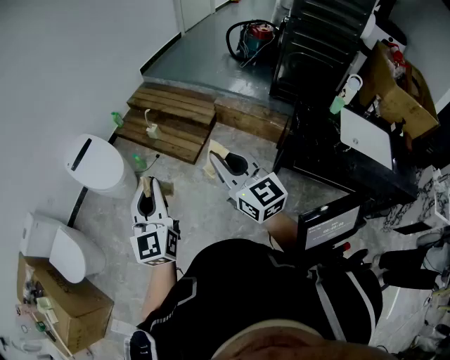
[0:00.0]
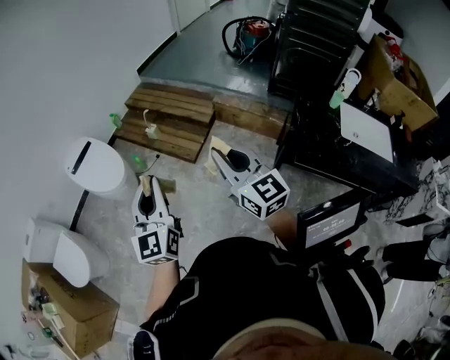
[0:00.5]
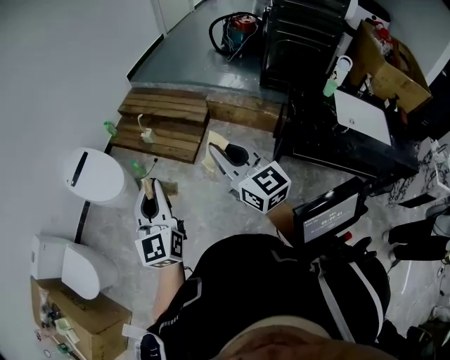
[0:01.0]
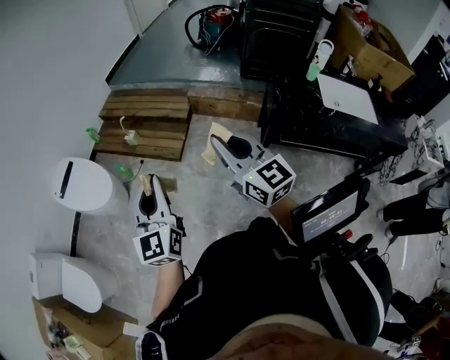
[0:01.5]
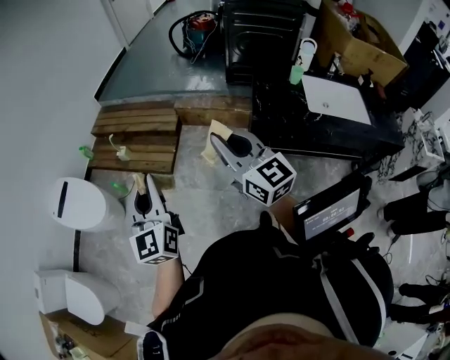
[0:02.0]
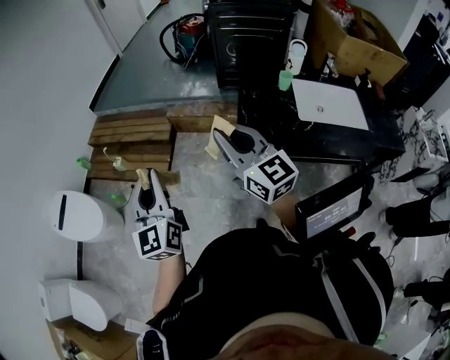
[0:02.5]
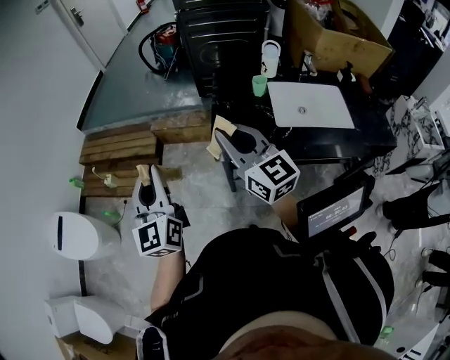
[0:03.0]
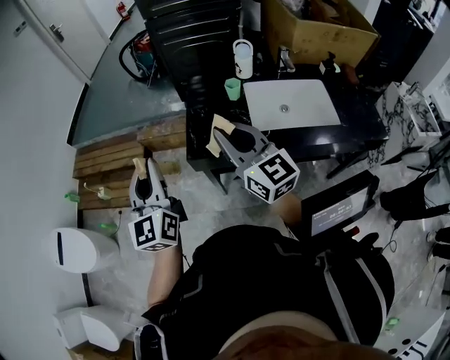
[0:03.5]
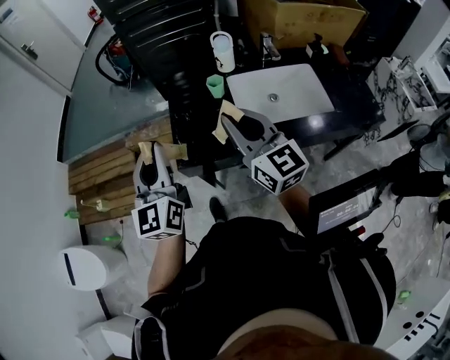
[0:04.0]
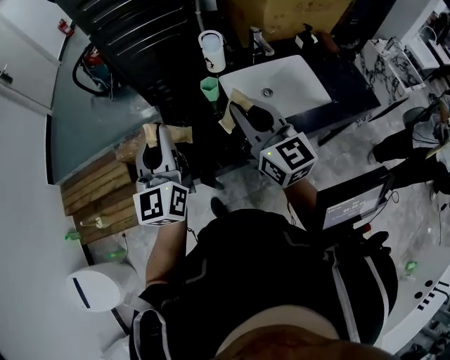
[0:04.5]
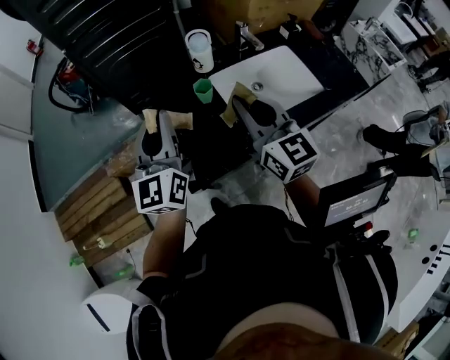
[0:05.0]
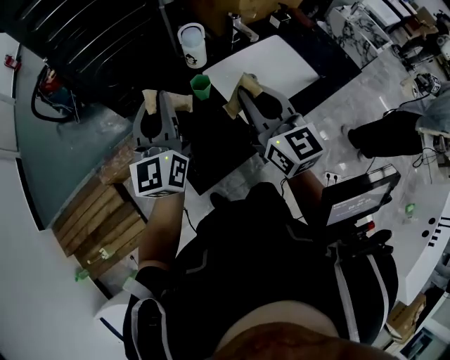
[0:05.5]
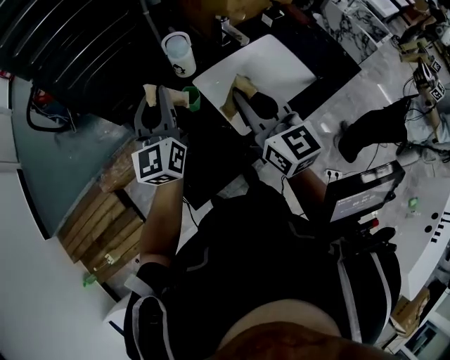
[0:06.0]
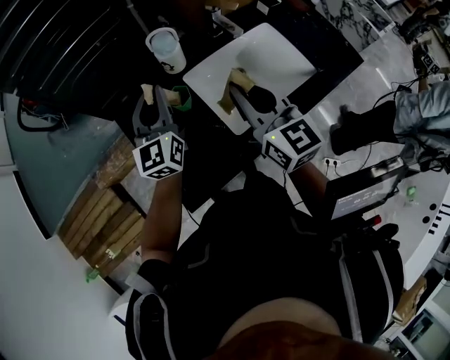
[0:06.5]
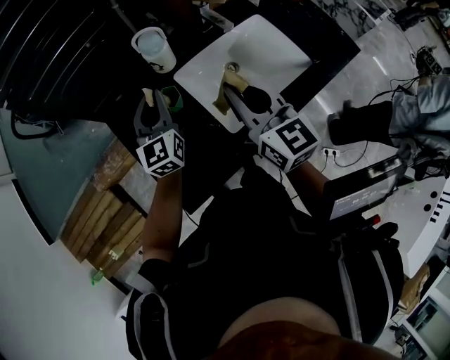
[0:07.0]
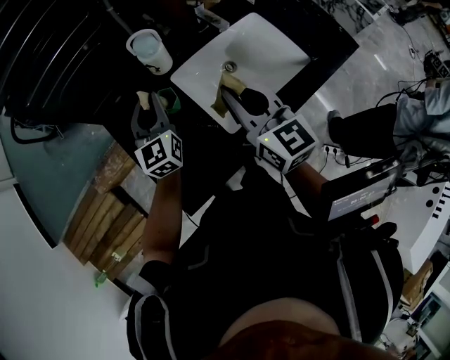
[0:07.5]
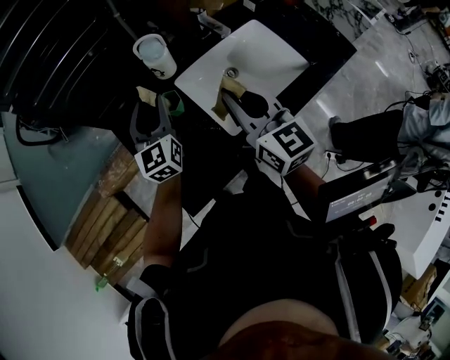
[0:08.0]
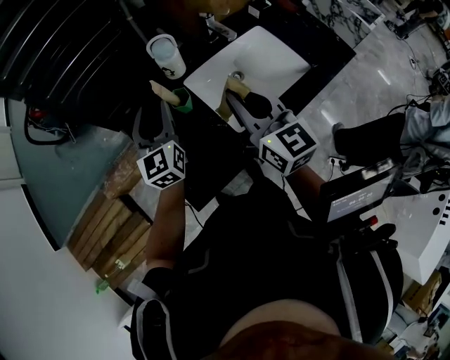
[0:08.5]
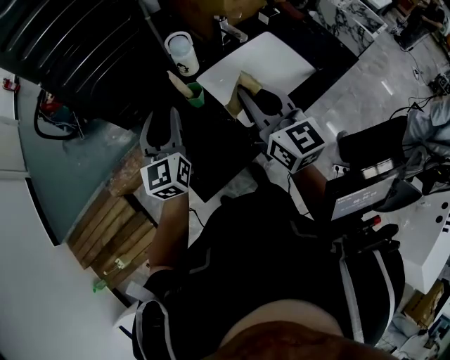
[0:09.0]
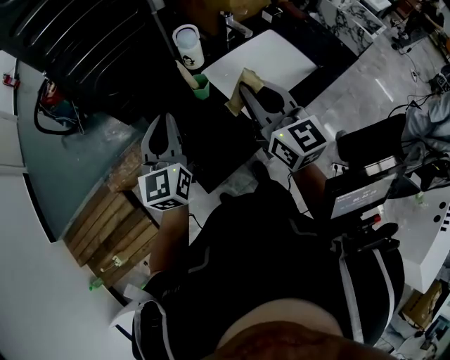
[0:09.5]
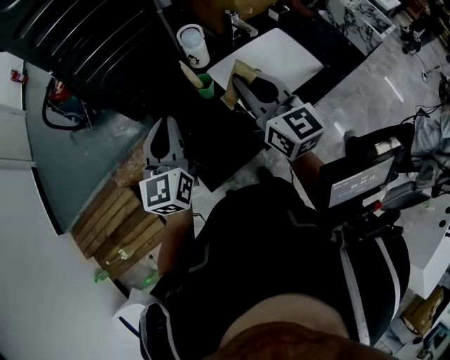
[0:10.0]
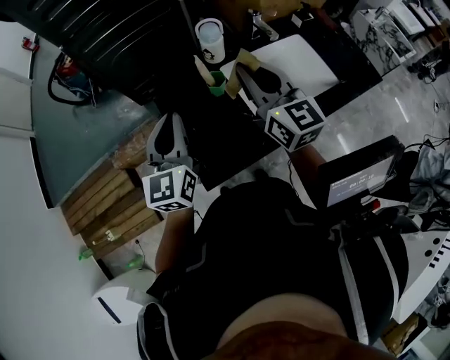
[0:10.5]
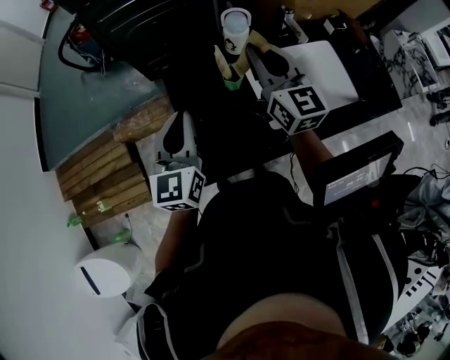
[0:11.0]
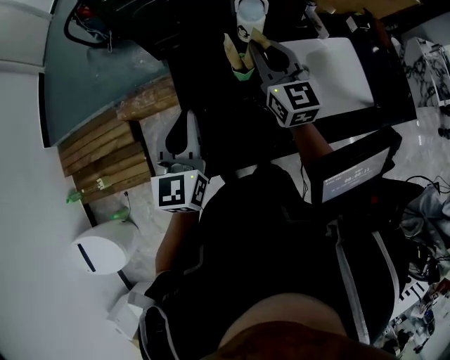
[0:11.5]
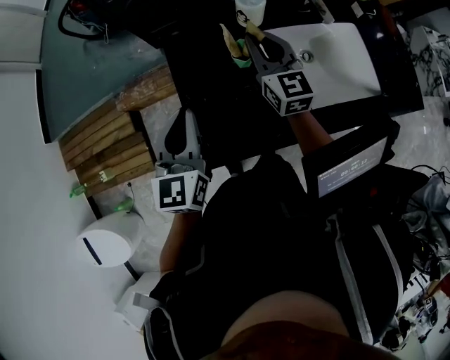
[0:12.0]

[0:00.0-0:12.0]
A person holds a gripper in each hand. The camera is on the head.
0:00.0 to 0:02.0: The two grippers go some 10 cm to the right.
0:02.0 to 0:04.0: The pair of grippers is taken to the right, roughly 50 cm. The left gripper changes its angle by some 20 degrees; the right gripper swivels about 20 degrees.
0:04.0 to 0:06.0: The left gripper changes place by about 30 cm, and swivels roughly 30 degrees; the right gripper moves approximately 15 cm, and turns by some 30 degrees.
0:06.0 to 0:08.0: The left gripper shifts roughly 10 cm downward, and opens its fingers.
0:08.0 to 0:10.0: The left gripper travels backward, upward and to the left by some 20 cm, and closes up; the right gripper moves to the left, upward and backward, roughly 10 cm.
0:10.0 to 0:12.0: The right gripper is displaced forward and downward by approximately 20 cm. The left gripper is displaced downward by roughly 5 cm, and changes its angle by some 20 degrees.

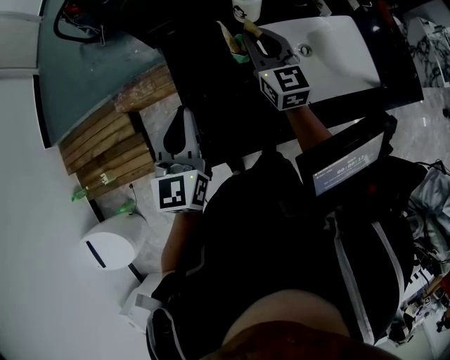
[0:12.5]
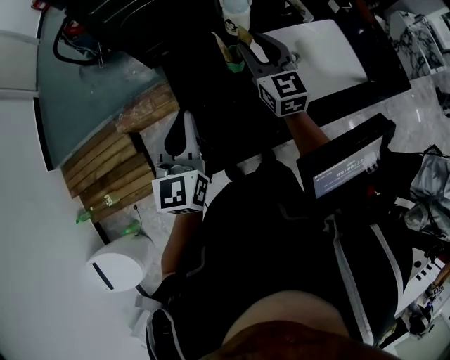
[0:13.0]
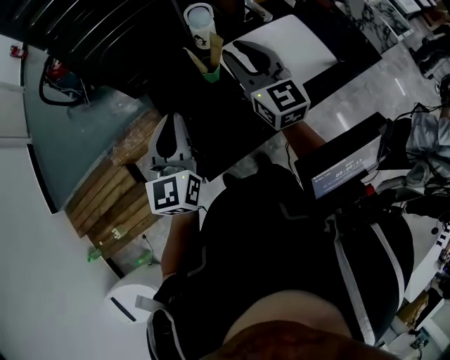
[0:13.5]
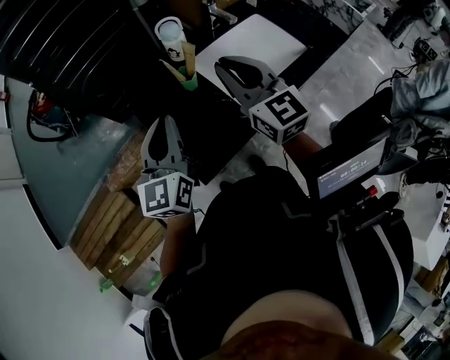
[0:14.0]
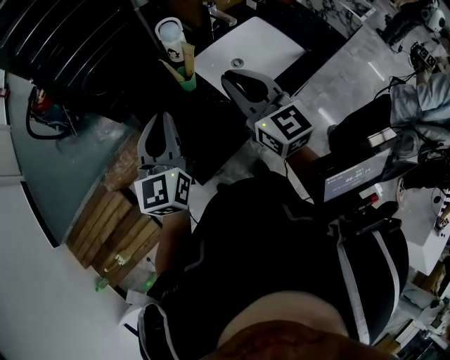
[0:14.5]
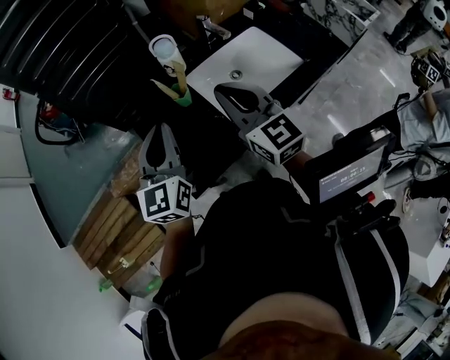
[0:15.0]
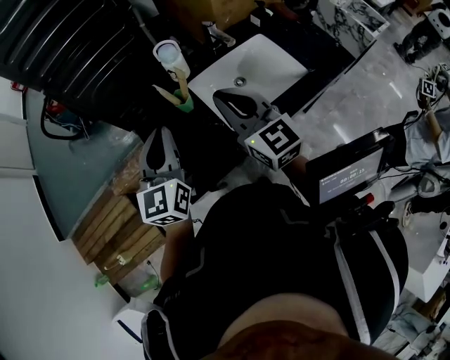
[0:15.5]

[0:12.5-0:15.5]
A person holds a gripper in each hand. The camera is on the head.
0:12.5 to 0:14.0: The right gripper moves backward and upward, approximately 20 cm. The left gripper moves upward, about 5 cm, and swivels approximately 30 degrees.
0:14.0 to 0:15.5: The left gripper goes roughly 5 cm to the right.

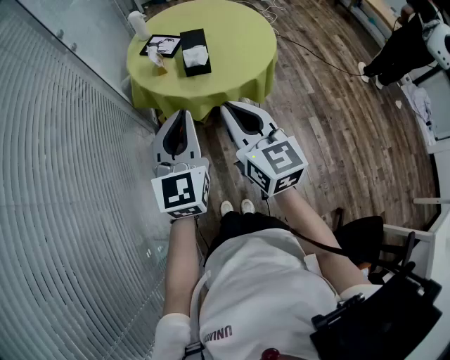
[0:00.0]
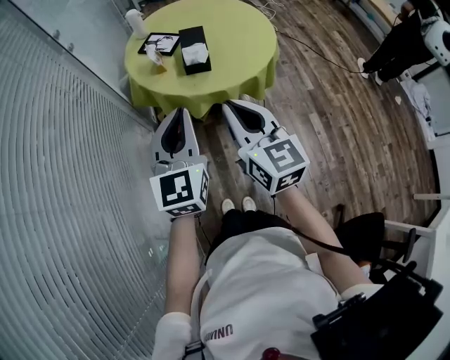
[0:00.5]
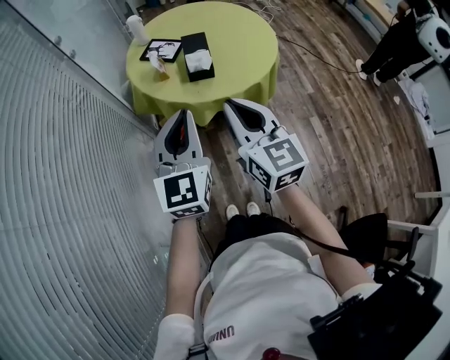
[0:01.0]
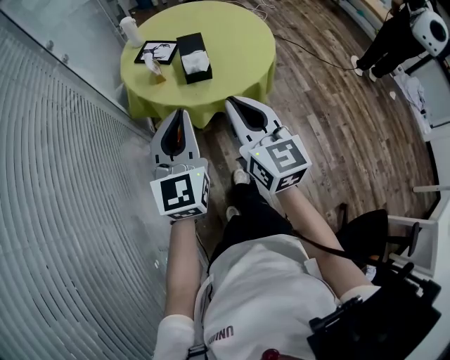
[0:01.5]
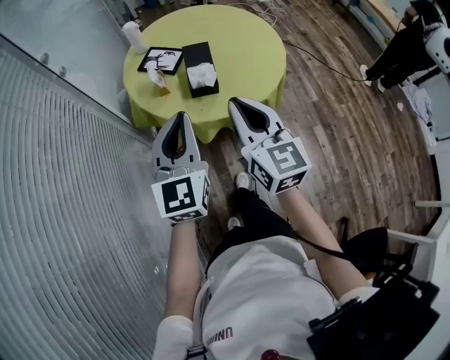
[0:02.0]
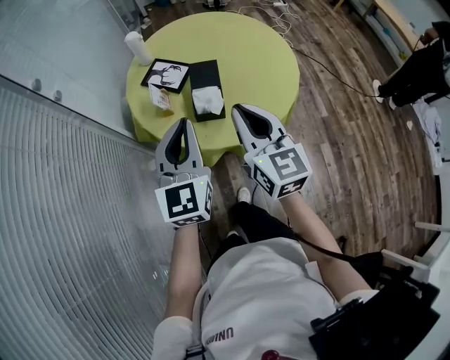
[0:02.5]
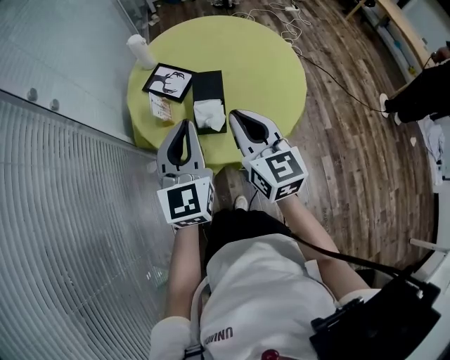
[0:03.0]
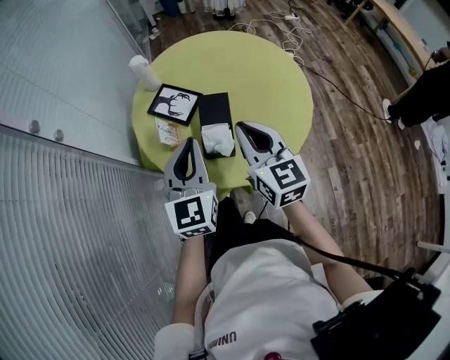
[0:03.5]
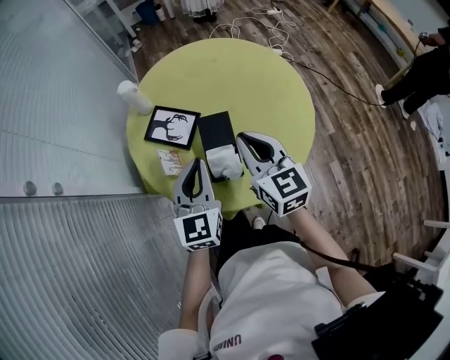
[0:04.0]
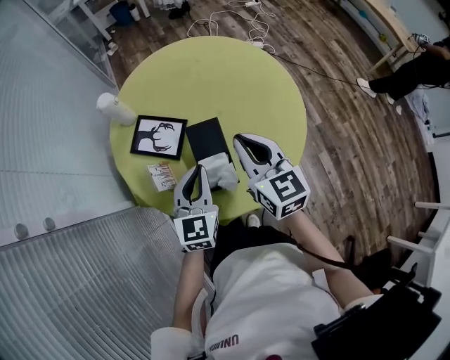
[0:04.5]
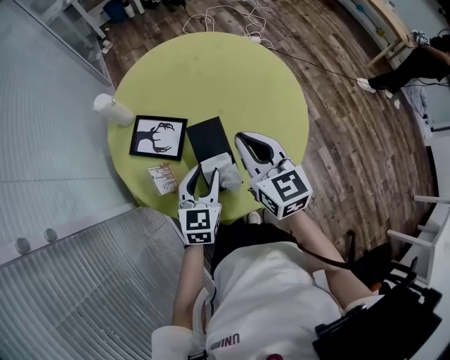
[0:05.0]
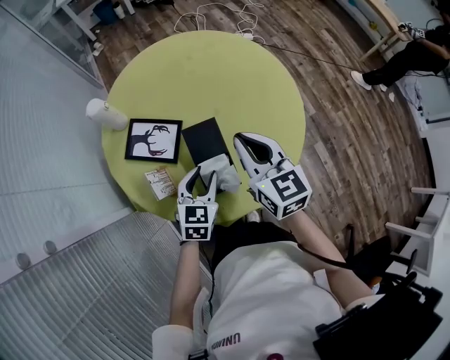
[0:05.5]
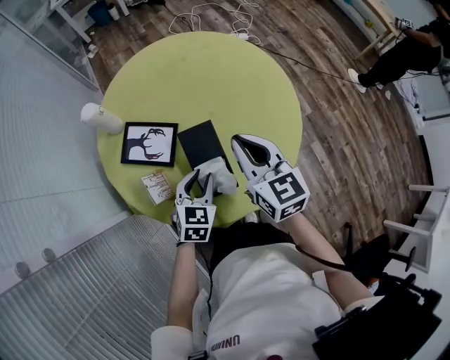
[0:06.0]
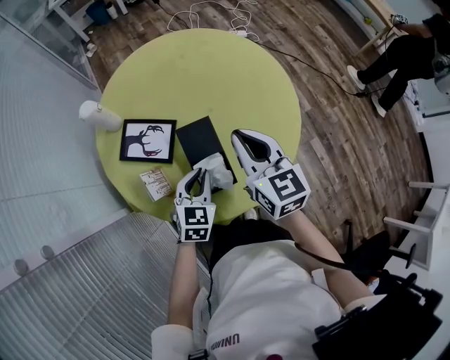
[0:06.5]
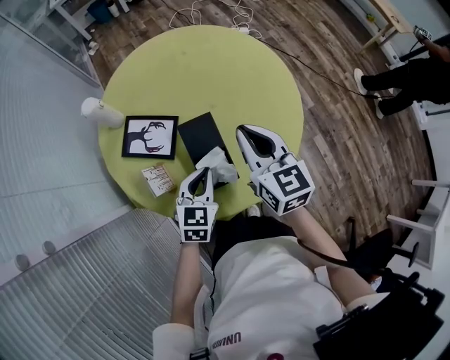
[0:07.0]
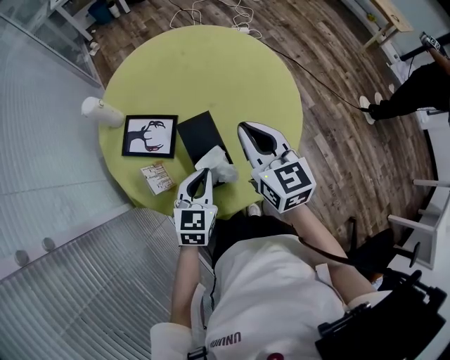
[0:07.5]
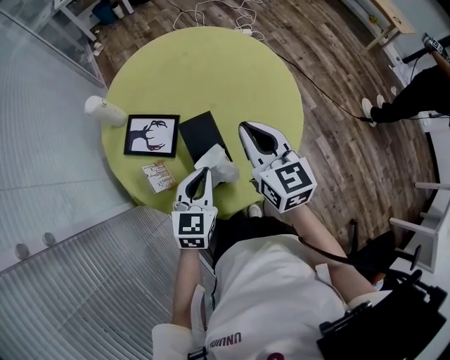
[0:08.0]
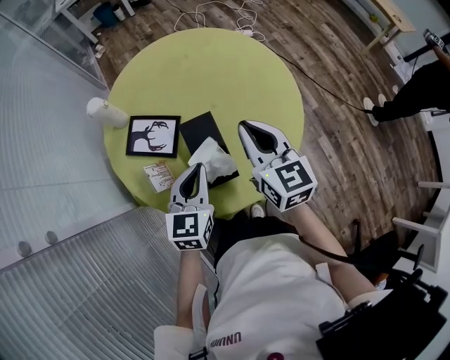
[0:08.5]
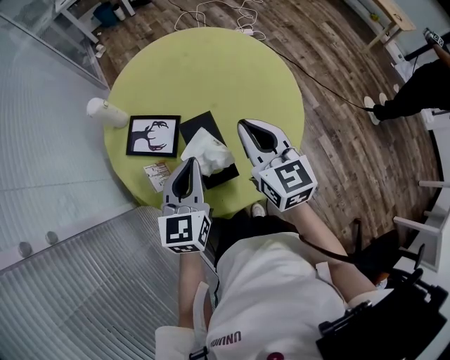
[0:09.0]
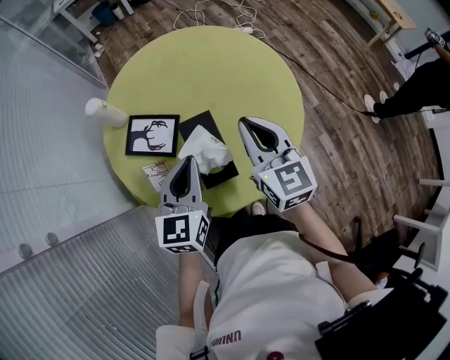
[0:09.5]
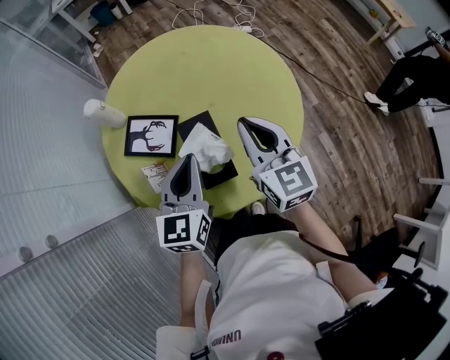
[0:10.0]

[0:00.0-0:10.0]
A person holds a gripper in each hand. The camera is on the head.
0:00.0 to 0:02.0: Both grippers move forward, about 15 cm.
0:02.0 to 0:04.0: Both grippers travel together forward, some 25 cm.
0:04.0 to 0:06.0: The left gripper is displaced downward by approximately 15 cm, turns by some 40 degrees, and opens its fingers.
0:06.0 to 0:08.0: The left gripper goes about 5 cm upward, and closes up.
0:08.0 to 0:10.0: The left gripper is displaced upward by approximately 10 cm.

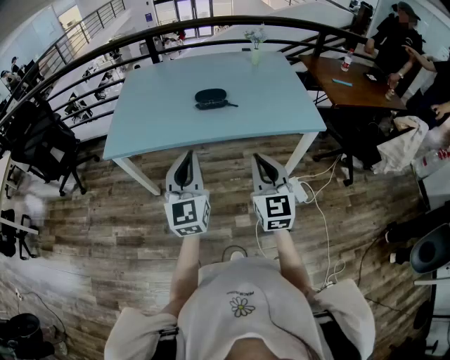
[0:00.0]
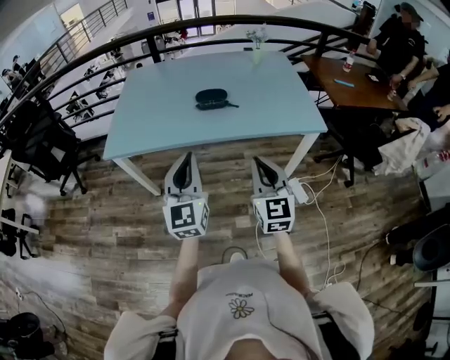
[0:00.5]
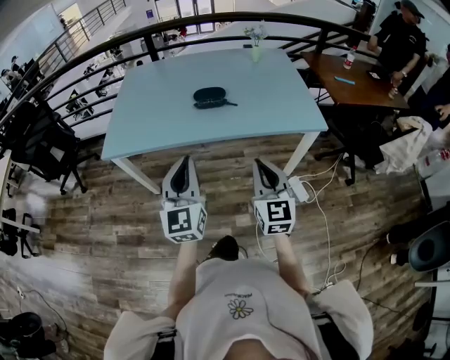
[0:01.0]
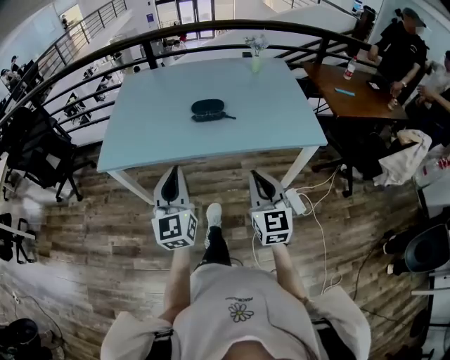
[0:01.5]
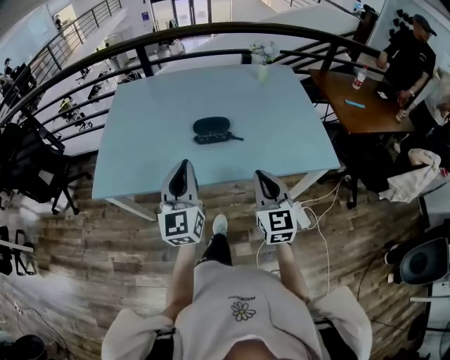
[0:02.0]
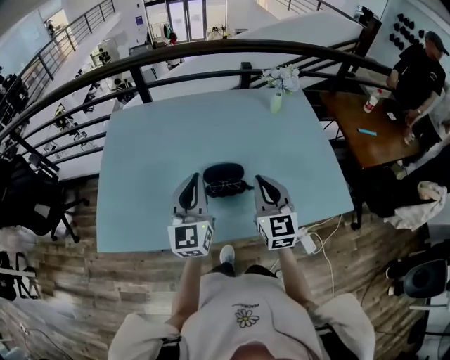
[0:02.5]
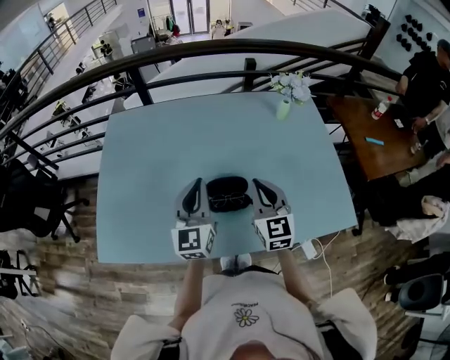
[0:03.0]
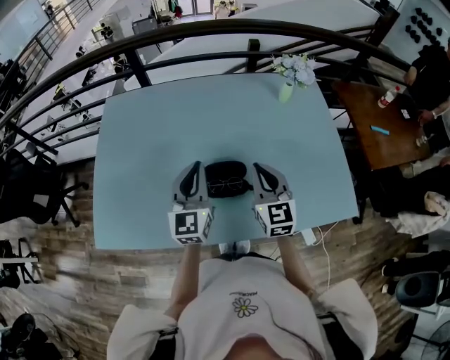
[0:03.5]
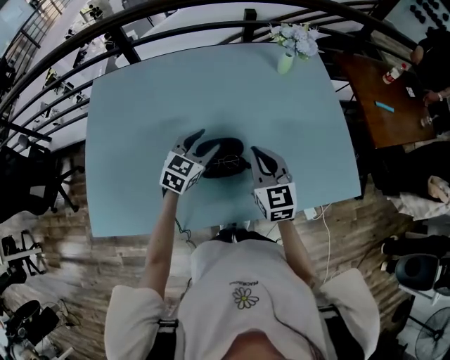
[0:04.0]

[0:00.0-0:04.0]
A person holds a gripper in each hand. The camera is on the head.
0:00.0 to 0:02.0: The grippers both shift forward by approximately 20 cm.
0:02.0 to 0:04.0: The right gripper travels forward by roughly 30 cm, while the left gripper goes about 40 cm forward and downward, tilts its fingers approximately 30 degrees downward, and opens its fingers.
